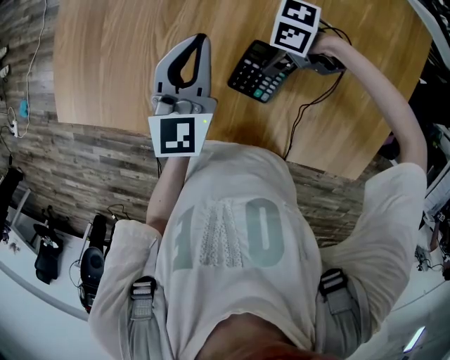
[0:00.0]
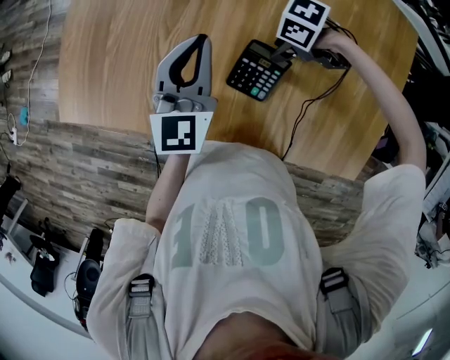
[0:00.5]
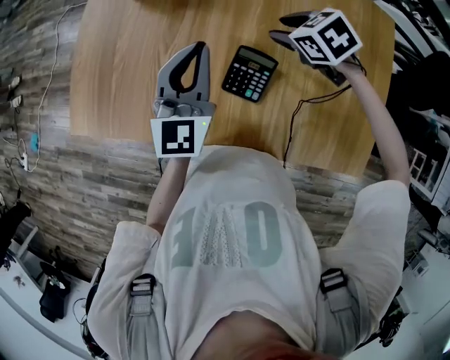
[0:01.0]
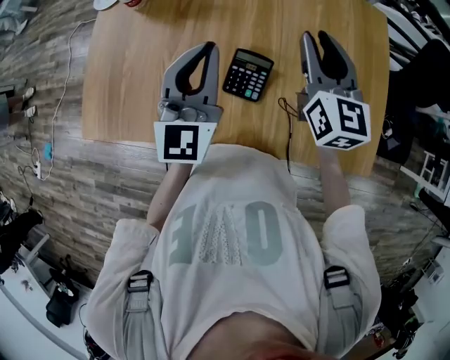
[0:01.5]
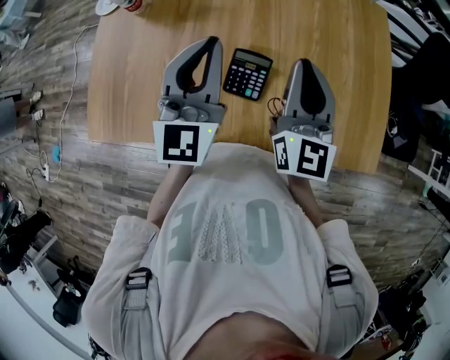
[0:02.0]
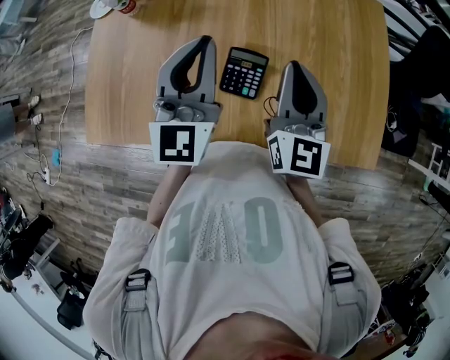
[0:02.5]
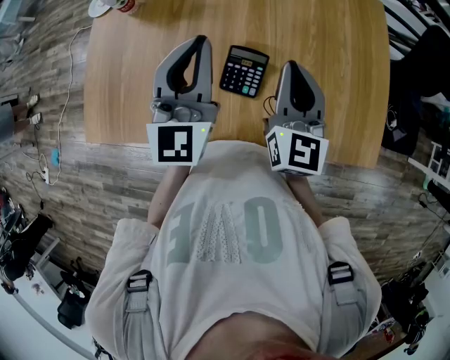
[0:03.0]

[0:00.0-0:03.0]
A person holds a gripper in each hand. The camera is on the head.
0:00.0 to 0:01.5: The left gripper shifts roughly 15 cm upward, and swivels some 20 degrees; the right gripper travels upward by approximately 30 cm, and angles its fingers upward, by approximately 30 degrees.
0:01.5 to 0:03.0: The right gripper travels backward by about 5 cm, and closes.

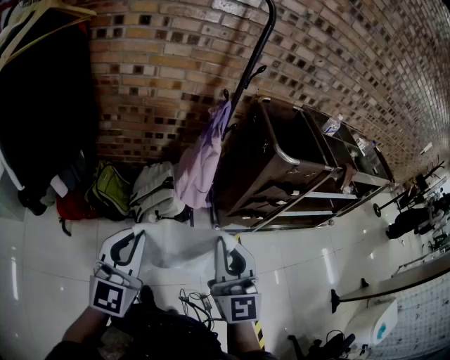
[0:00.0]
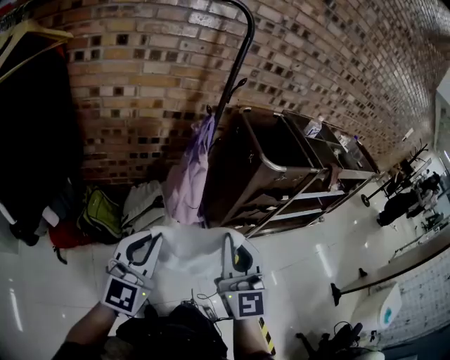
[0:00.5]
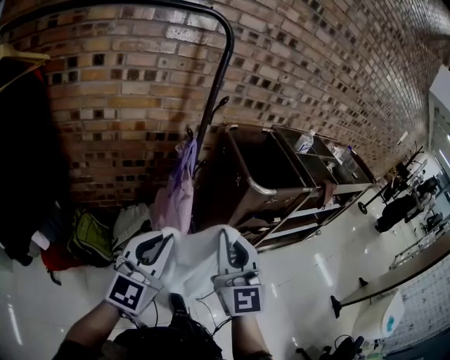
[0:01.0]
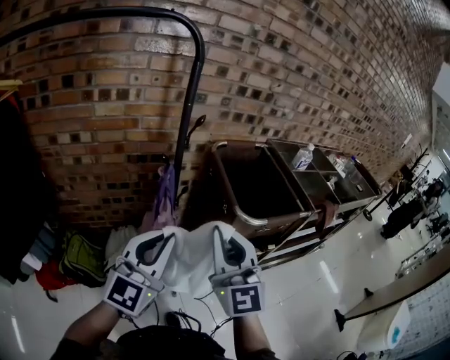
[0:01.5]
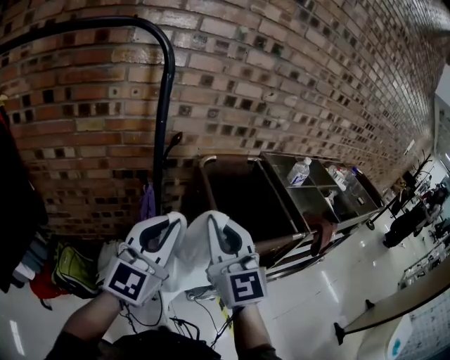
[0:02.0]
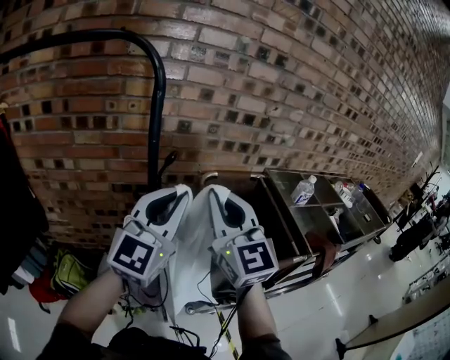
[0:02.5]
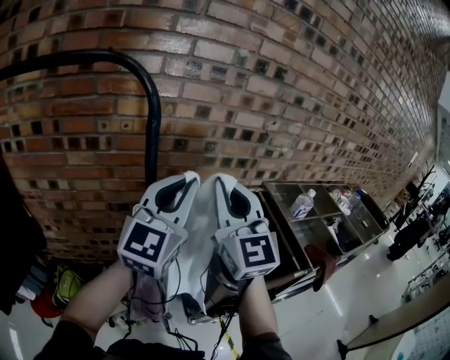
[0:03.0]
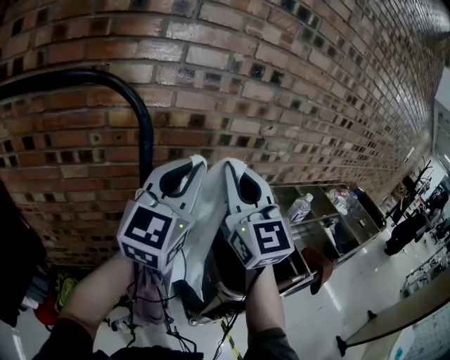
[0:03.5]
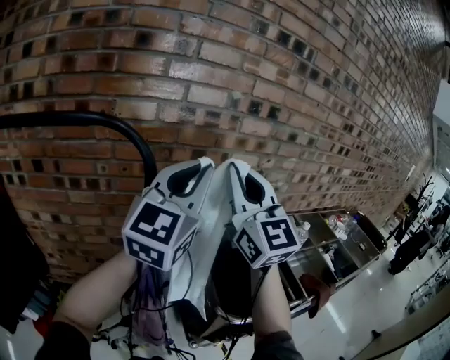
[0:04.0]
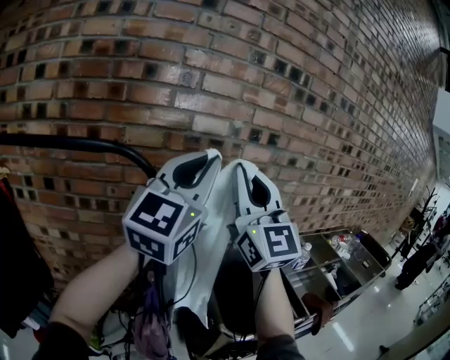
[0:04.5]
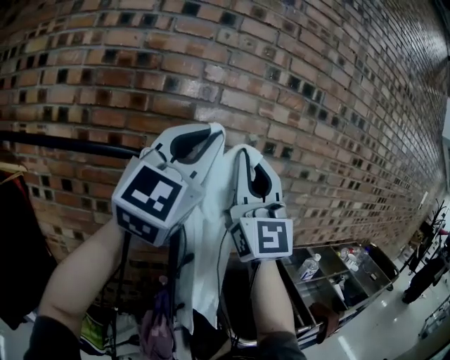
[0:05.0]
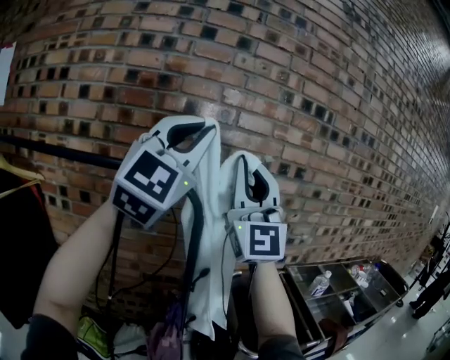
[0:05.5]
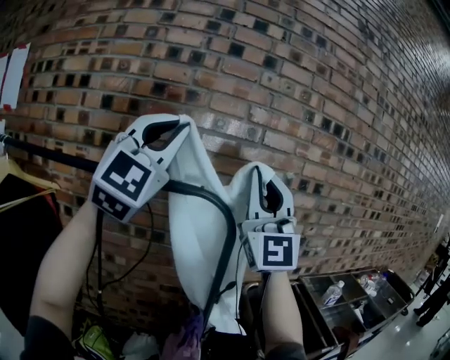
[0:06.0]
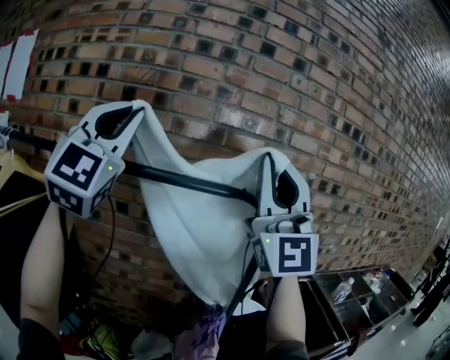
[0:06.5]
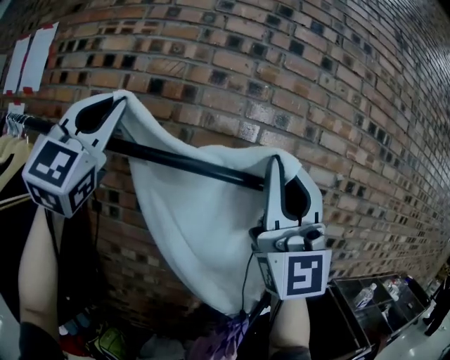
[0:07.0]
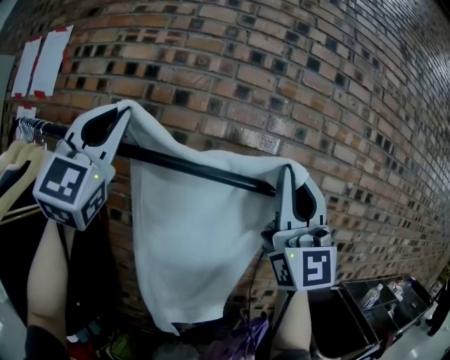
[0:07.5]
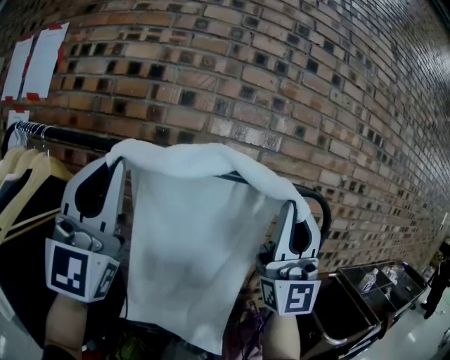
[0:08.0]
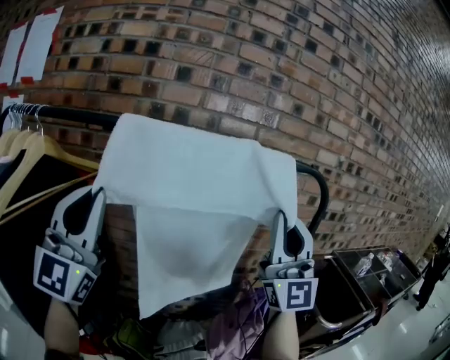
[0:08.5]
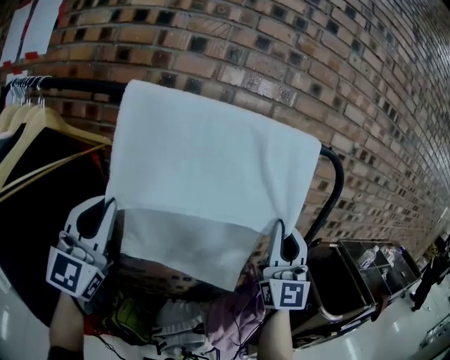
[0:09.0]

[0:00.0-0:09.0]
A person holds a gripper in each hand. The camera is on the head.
0:00.0 to 0:02.0: The pair of grippers is taken forward and to the right, about 40 cm.
0:02.0 to 0:04.5: Both grippers travel together upward and forward, about 40 cm. The right gripper swivels roughly 30 degrees.
0:04.5 to 0:07.0: The left gripper shifts by some 50 cm, and rotates some 50 degrees. Meanwhile the right gripper shifts by some 35 cm, and turns by approximately 30 degrees.
0:07.0 to 0:09.0: The left gripper goes approximately 30 cm downward and to the left, and changes its angle by approximately 20 degrees; the right gripper moves downward, about 25 cm, and swivels some 30 degrees.

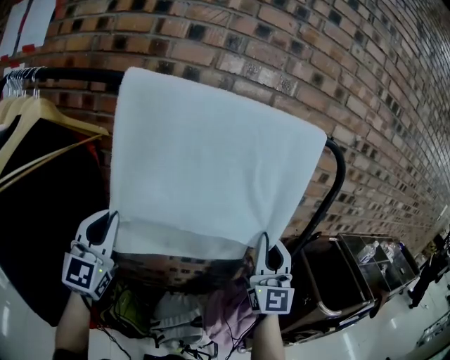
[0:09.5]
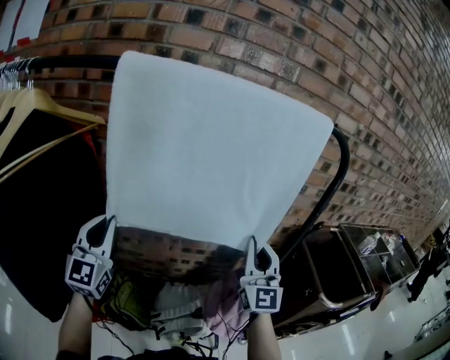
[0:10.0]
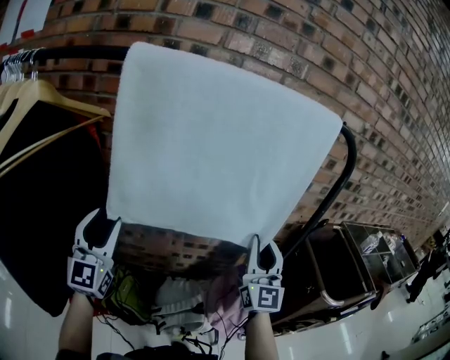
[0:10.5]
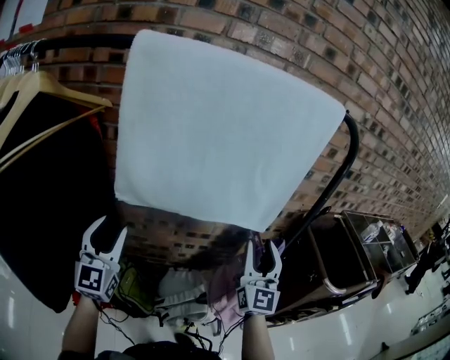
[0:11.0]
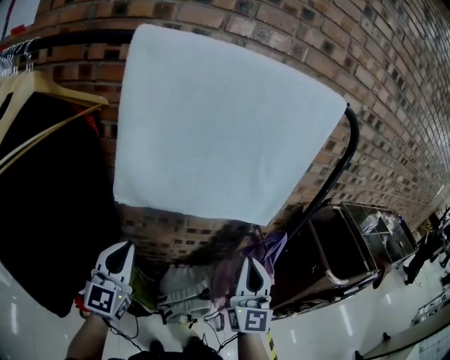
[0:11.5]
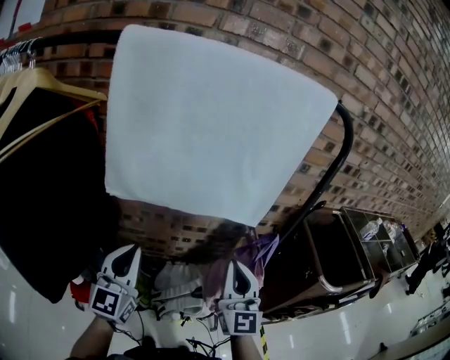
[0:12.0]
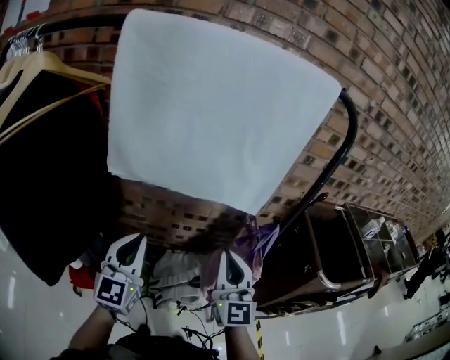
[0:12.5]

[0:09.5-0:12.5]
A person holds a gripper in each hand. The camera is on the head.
0:09.5 to 0:11.0: Both grippers move downward, about 10 cm. The right gripper opens its fingers. The left gripper opens up.
0:11.0 to 0:12.5: The right gripper shifts approximately 5 cm backward, and closes. The left gripper travels to the right and backward by roughly 15 cm, and closes up.

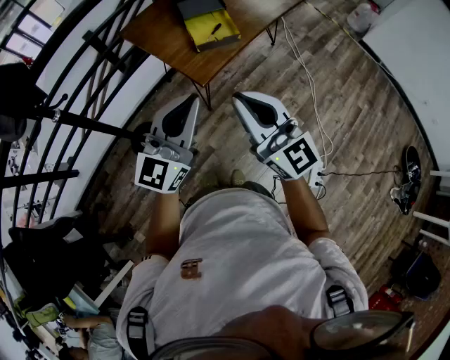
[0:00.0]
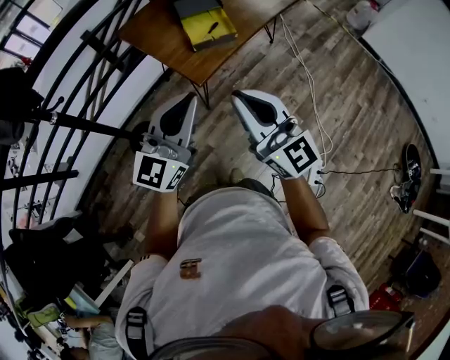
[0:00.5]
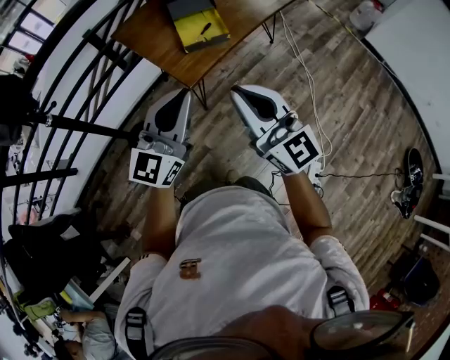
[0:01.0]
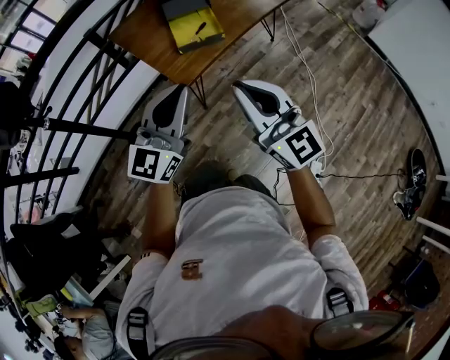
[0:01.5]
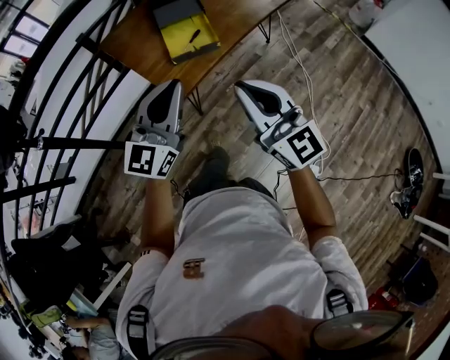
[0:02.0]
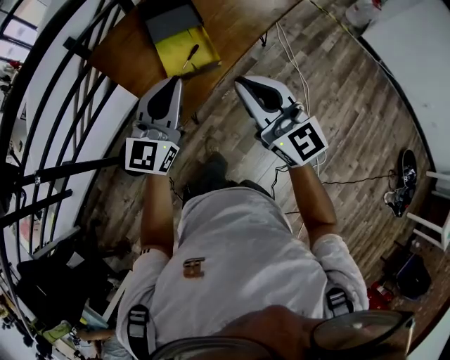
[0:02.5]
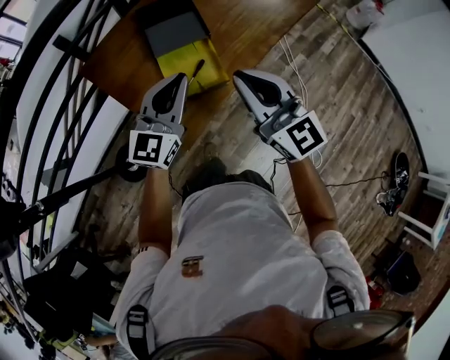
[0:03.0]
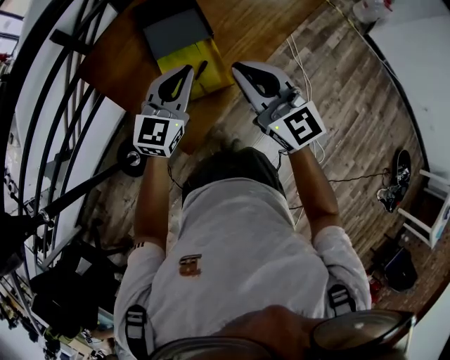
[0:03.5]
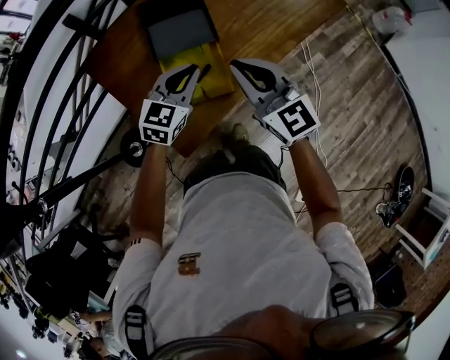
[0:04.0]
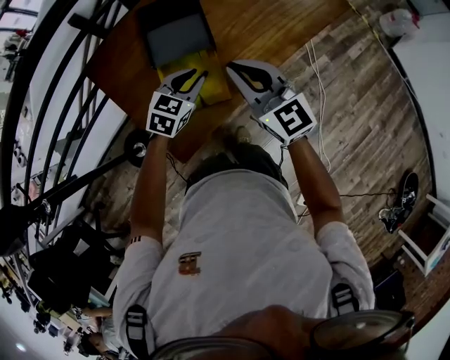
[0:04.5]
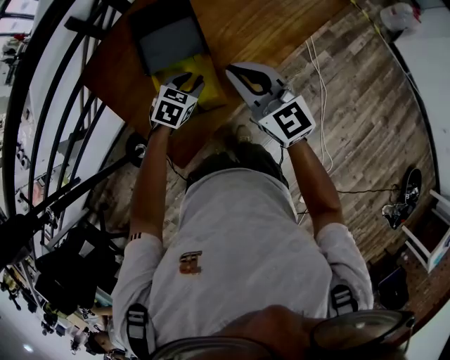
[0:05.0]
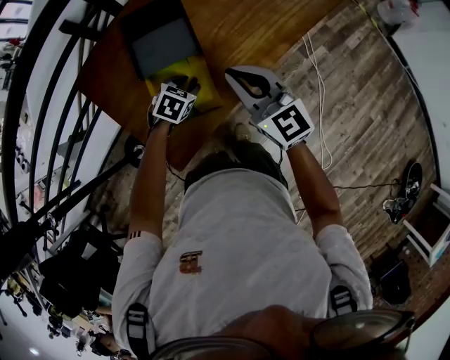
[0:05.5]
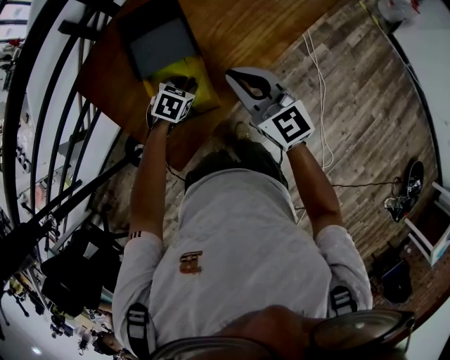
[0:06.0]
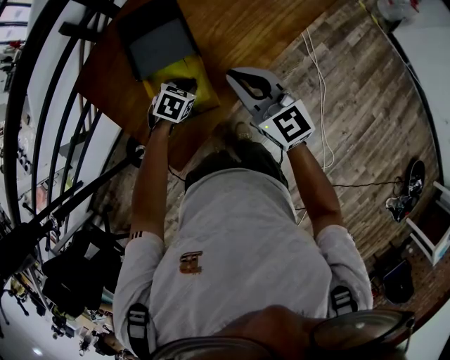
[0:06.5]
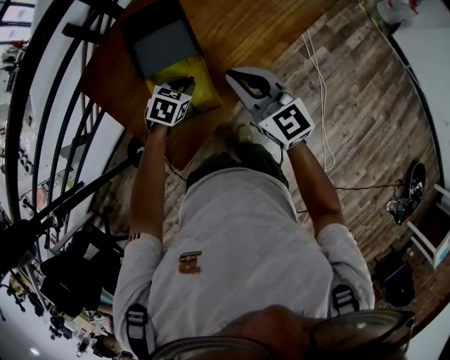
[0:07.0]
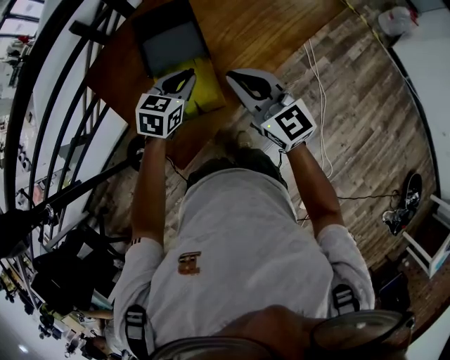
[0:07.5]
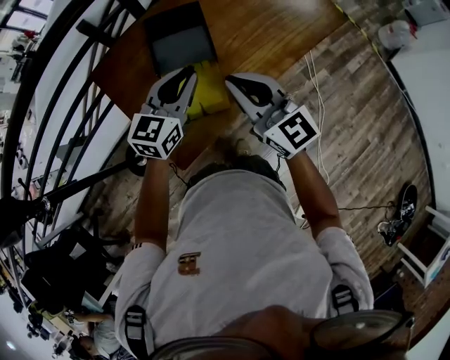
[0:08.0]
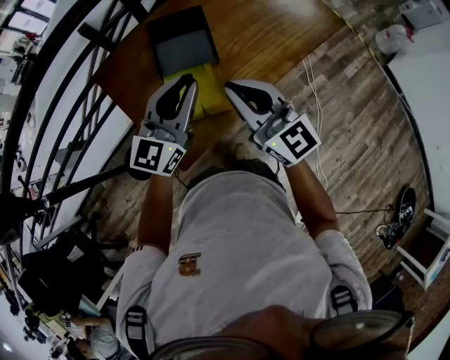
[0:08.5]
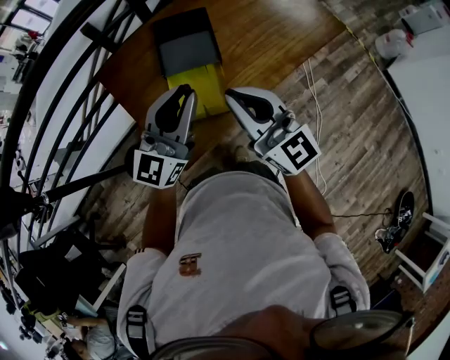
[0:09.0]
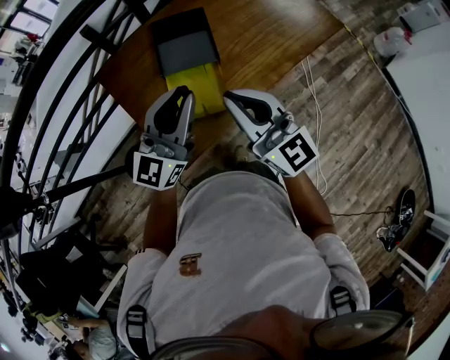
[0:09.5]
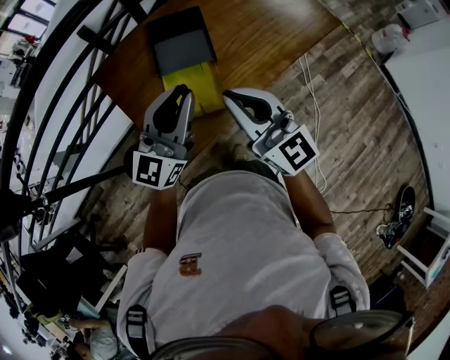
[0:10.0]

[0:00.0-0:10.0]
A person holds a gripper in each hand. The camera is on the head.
0:00.0 to 0:02.0: The left gripper moves forward and to the right, some 15 cm. Meanwhile the right gripper shifts about 20 cm to the right and forward.
0:02.0 to 0:04.0: The pair of grippers is taken forward, approximately 40 cm. The left gripper moves downward, some 15 cm, and tips its fingers downward by about 30 degrees.
0:04.0 to 0:06.0: The right gripper goes roughly 10 cm to the right and forward; the left gripper shifts approximately 20 cm downward, tips its fingers downward by approximately 40 degrees, and opens.
0:06.0 to 0:08.0: The right gripper travels upward and backward by approximately 10 cm; the left gripper shifts about 25 cm upward, and angles its fingers upward, by approximately 50 degrees.
0:08.0 to 0:10.0: The right gripper moves backward, some 5 cm, while the left gripper goes some 10 cm upward and backward, and turns by some 30 degrees.

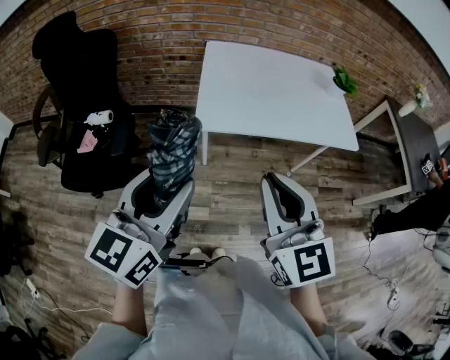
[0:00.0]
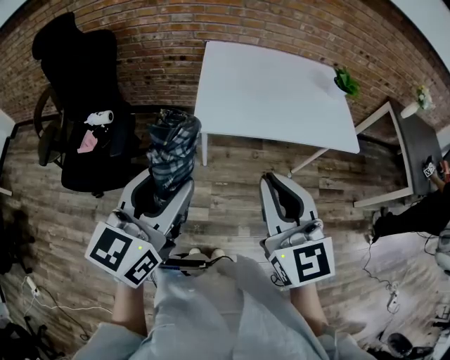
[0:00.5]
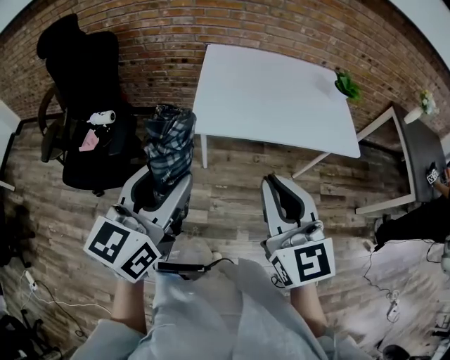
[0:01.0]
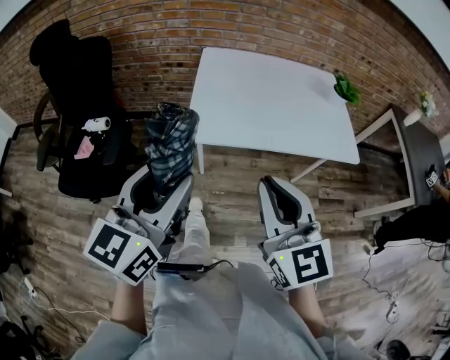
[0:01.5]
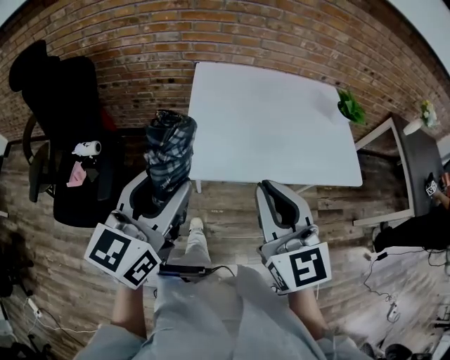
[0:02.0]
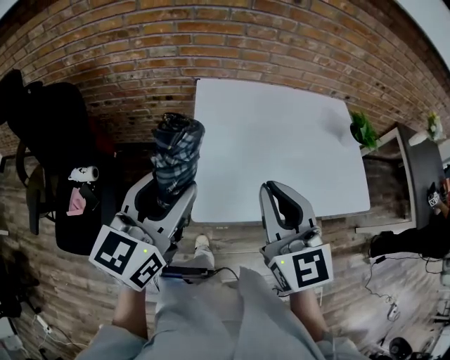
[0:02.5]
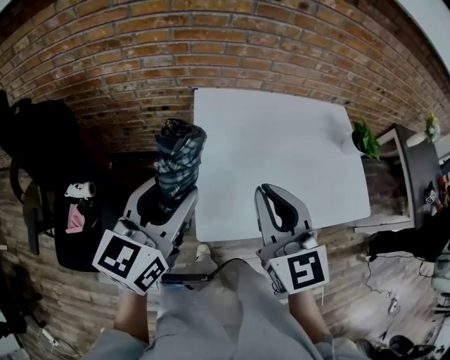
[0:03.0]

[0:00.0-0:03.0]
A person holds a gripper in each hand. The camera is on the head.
0:00.0 to 0:01.5: Both grippers move forward and to the right, some 10 cm.
0:01.5 to 0:03.0: The grippers both shift forward by some 40 cm.
